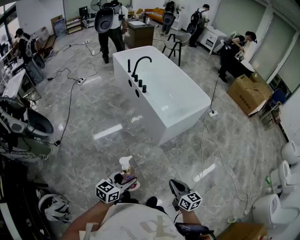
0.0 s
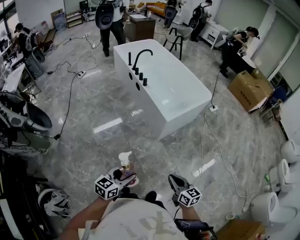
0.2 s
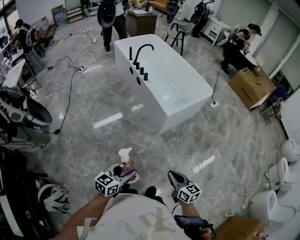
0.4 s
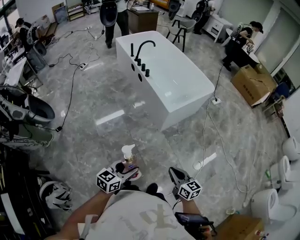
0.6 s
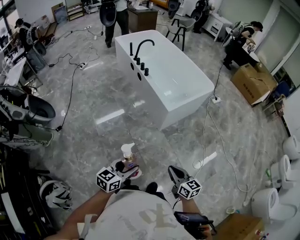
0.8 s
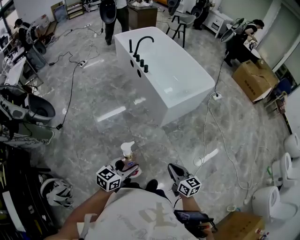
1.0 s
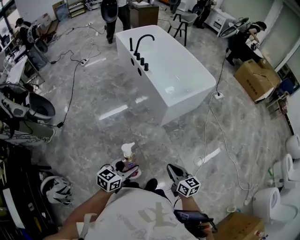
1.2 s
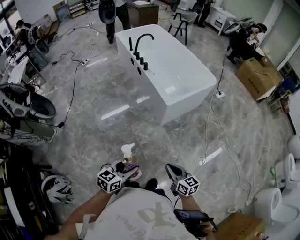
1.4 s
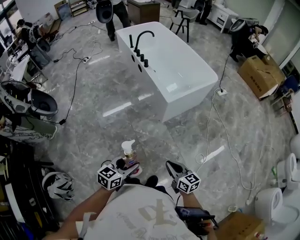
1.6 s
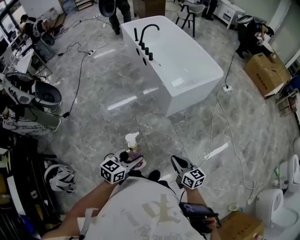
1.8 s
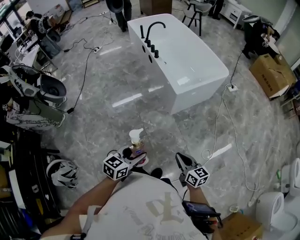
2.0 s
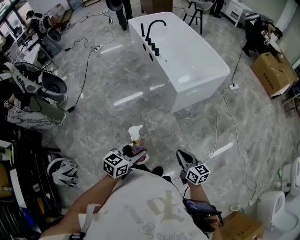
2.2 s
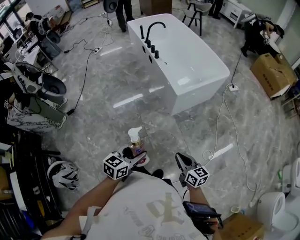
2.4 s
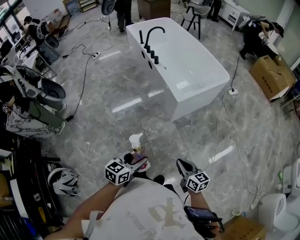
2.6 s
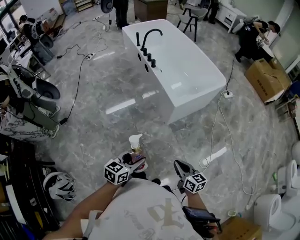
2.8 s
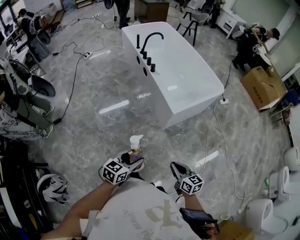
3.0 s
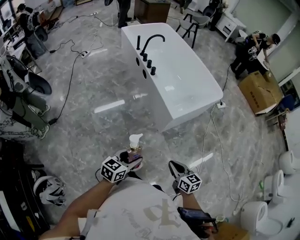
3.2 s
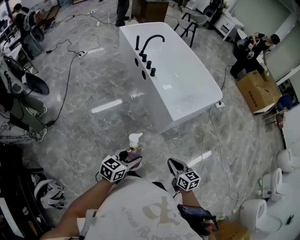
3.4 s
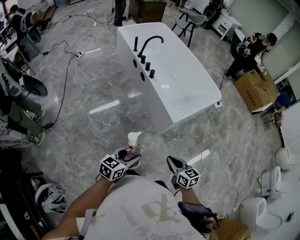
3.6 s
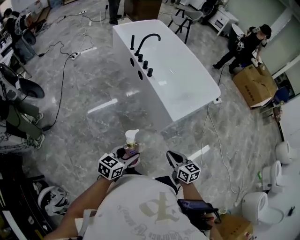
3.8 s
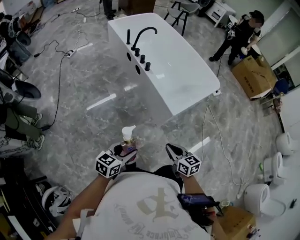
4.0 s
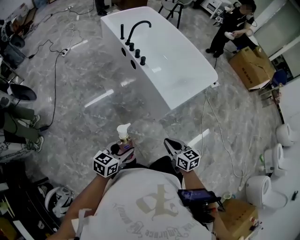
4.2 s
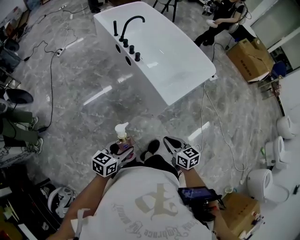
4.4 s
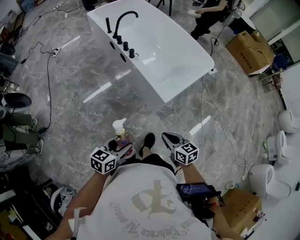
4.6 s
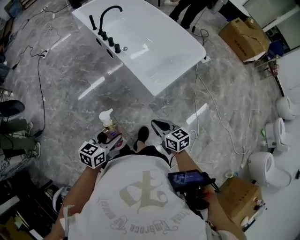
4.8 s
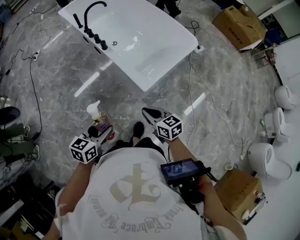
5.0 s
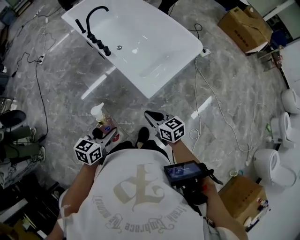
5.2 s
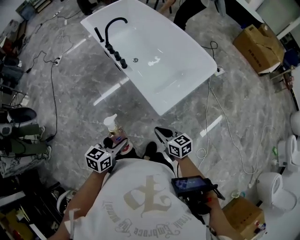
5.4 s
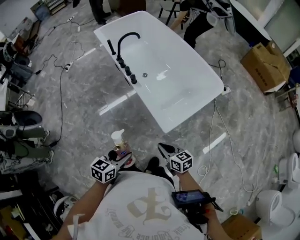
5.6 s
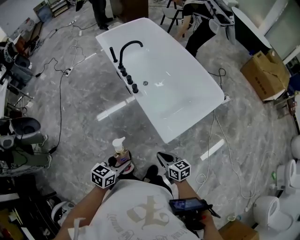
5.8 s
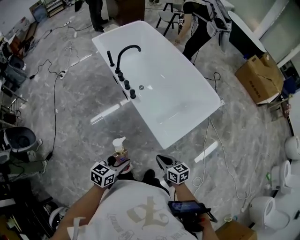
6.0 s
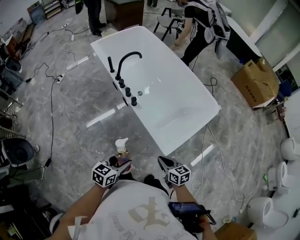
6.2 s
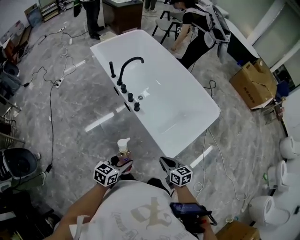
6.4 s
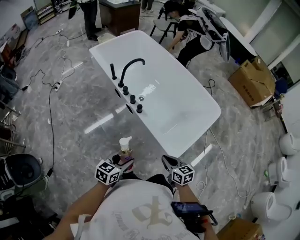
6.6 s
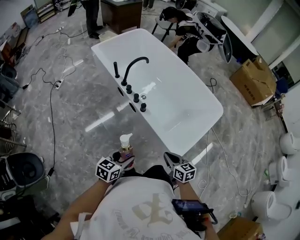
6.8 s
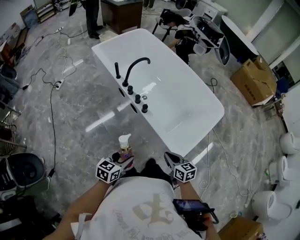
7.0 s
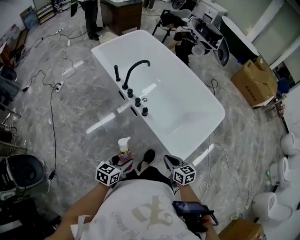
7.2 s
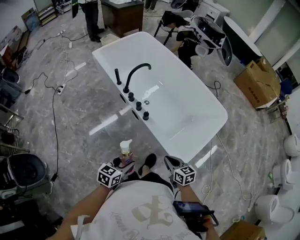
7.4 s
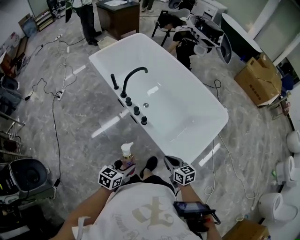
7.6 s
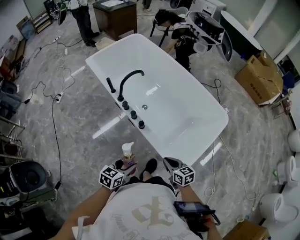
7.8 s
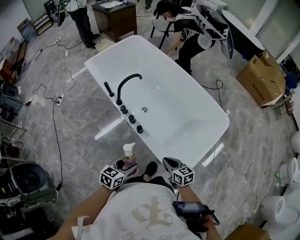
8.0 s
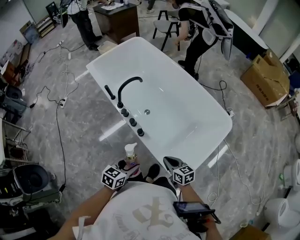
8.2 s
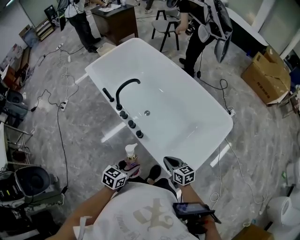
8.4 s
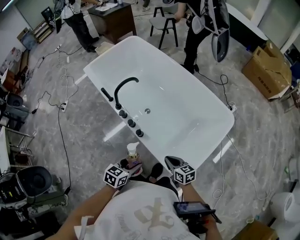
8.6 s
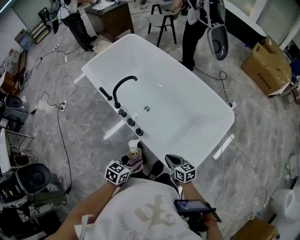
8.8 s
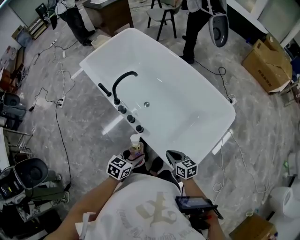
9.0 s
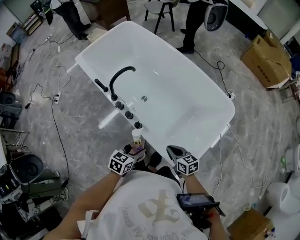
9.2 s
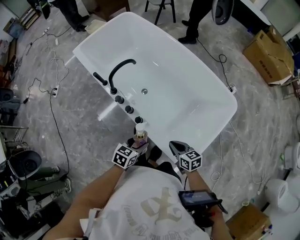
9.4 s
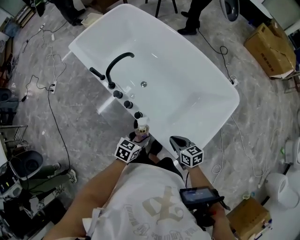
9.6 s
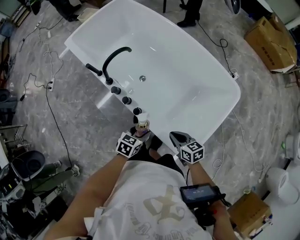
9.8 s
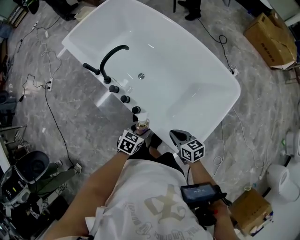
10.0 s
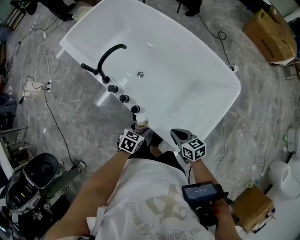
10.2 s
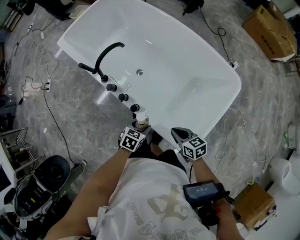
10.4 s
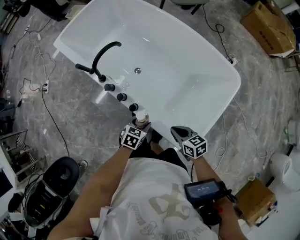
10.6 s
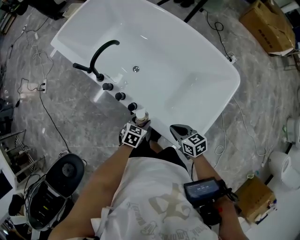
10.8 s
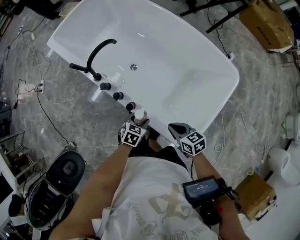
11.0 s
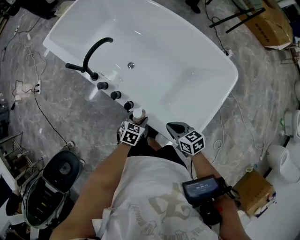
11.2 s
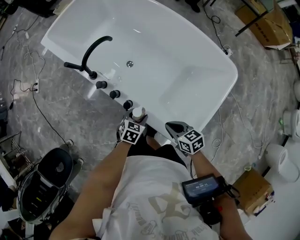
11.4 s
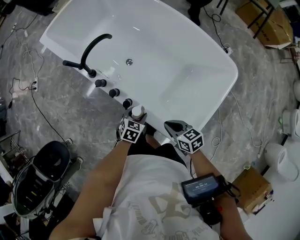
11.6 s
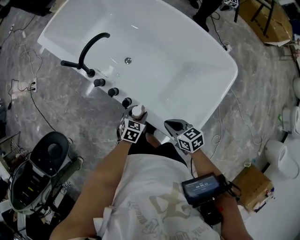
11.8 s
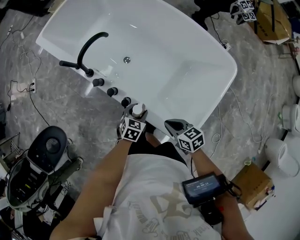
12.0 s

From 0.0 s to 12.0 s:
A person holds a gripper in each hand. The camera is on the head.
From 0.0 s to 1.6 s: The left gripper shifts some 10 cm to the right.
From 1.6 s to 3.0 s: Both grippers travel together forward, approximately 10 cm.
From 3.0 s to 4.4 s: The two grippers go about 15 cm forward and to the left.
From 4.4 s to 6.0 s: The grippers both shift forward by roughly 25 cm.
From 6.0 s to 7.6 s: The grippers both shift forward and to the left by about 20 cm.
From 7.6 s to 9.0 s: The right gripper shifts roughly 10 cm forward, while the left gripper shifts some 20 cm forward and to the right.
From 9.0 s to 10.4 s: The left gripper shifts roughly 15 cm downward and forward.
From 10.4 s to 12.0 s: The left gripper moves downward, roughly 5 cm.

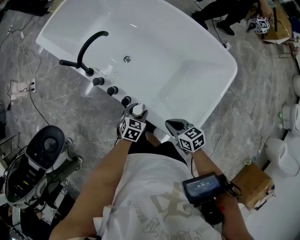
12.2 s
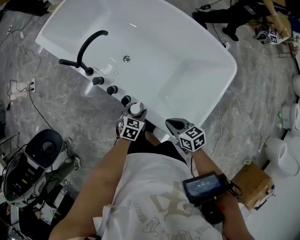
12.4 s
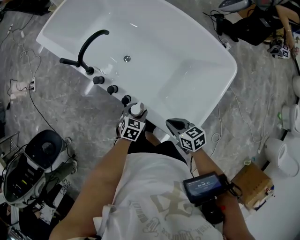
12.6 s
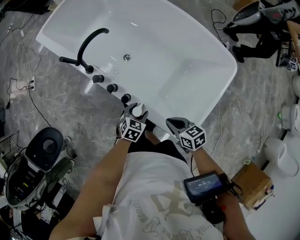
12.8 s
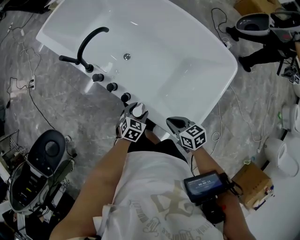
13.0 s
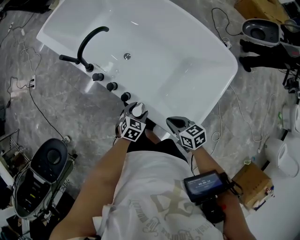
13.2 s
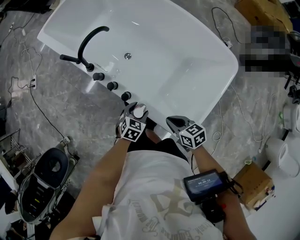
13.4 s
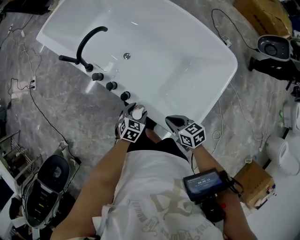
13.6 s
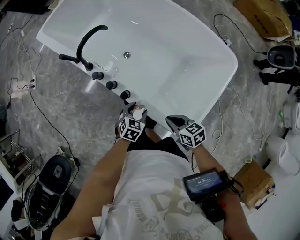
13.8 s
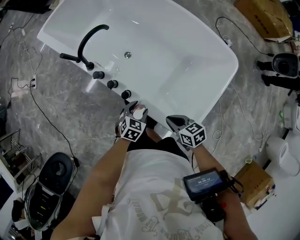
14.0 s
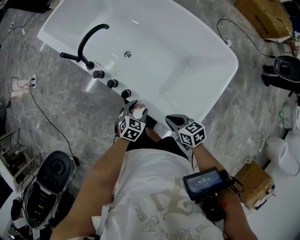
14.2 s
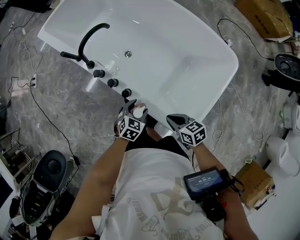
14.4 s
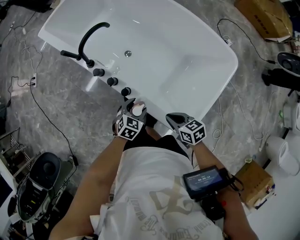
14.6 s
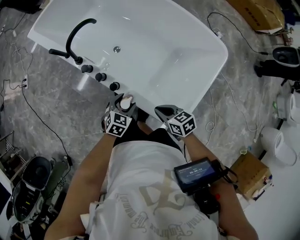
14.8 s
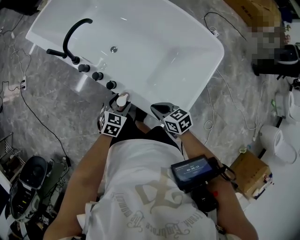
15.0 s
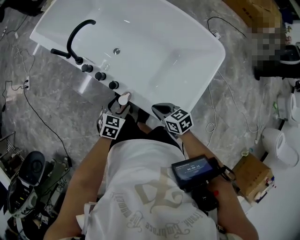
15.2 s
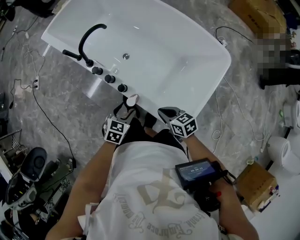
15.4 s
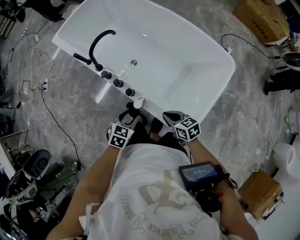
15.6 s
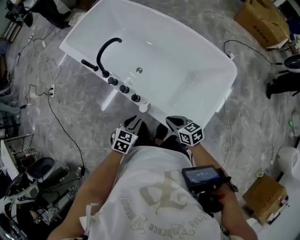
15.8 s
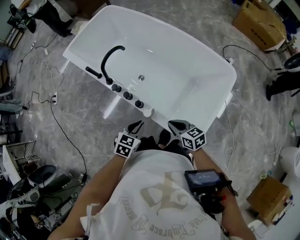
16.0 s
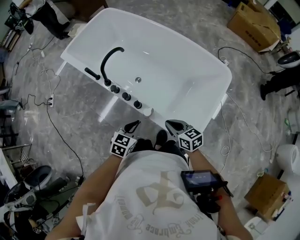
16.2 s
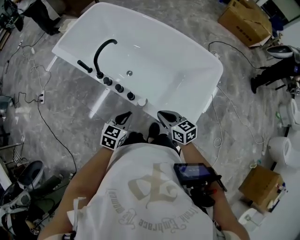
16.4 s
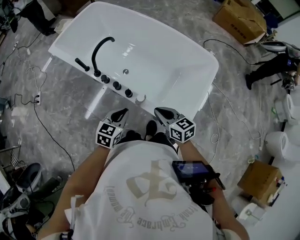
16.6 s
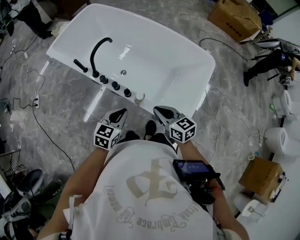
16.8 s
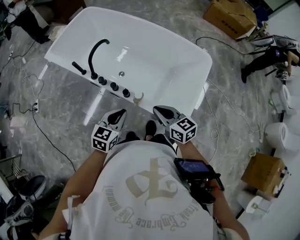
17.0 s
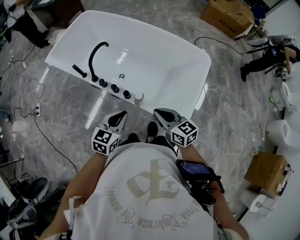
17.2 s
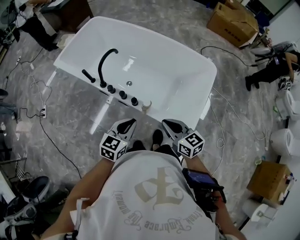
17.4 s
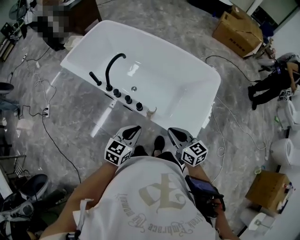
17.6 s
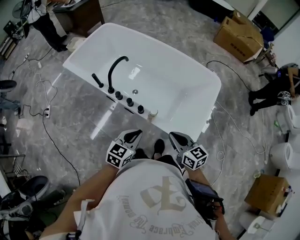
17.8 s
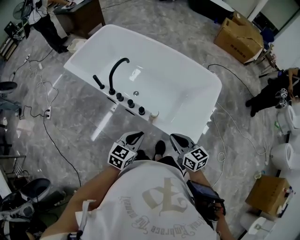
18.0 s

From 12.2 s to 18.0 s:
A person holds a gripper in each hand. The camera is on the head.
From 12.2 s to 15.0 s: The grippers move only a little.
From 15.0 s to 16.6 s: The two grippers go roughly 15 cm upward and to the left. The right gripper rotates about 20 degrees. Meanwhile the left gripper closes its fingers.
From 16.6 s to 18.0 s: The right gripper goes about 10 cm backward and upward; the left gripper heads backward, covering approximately 5 cm.

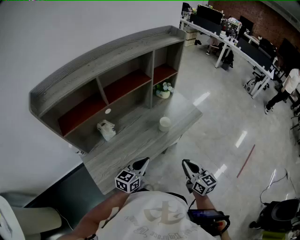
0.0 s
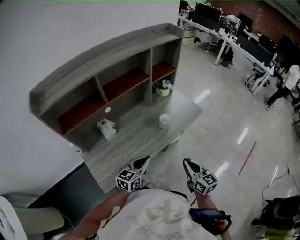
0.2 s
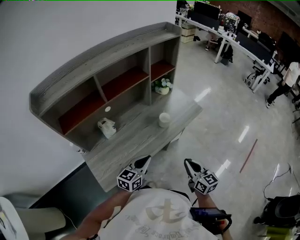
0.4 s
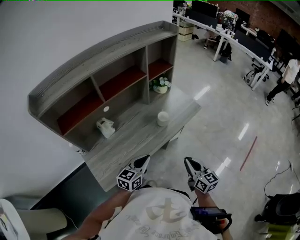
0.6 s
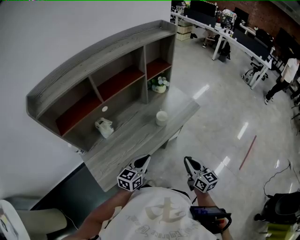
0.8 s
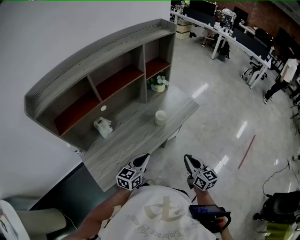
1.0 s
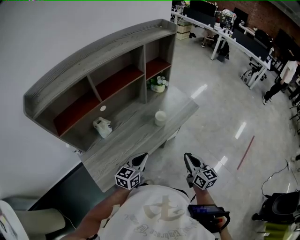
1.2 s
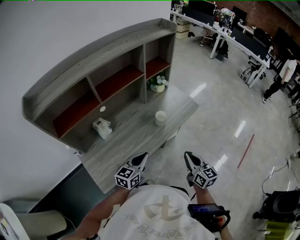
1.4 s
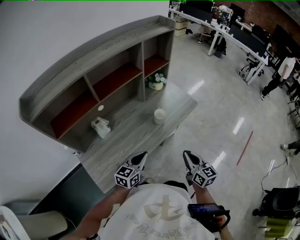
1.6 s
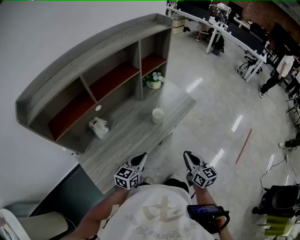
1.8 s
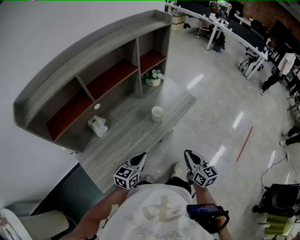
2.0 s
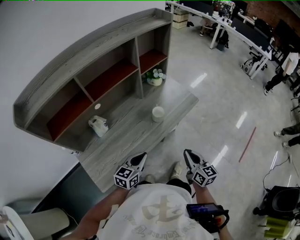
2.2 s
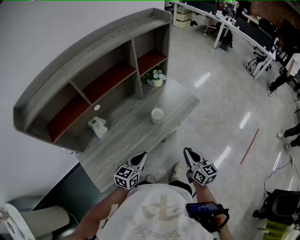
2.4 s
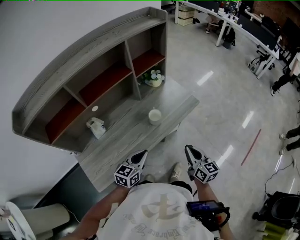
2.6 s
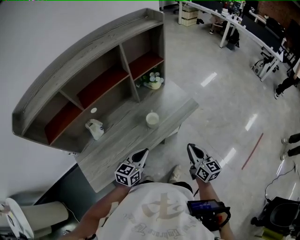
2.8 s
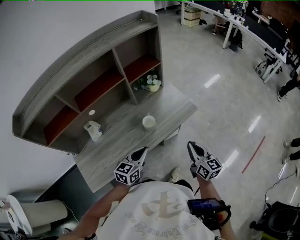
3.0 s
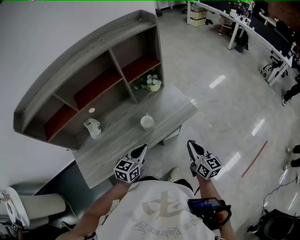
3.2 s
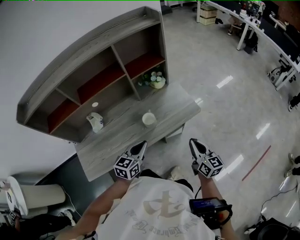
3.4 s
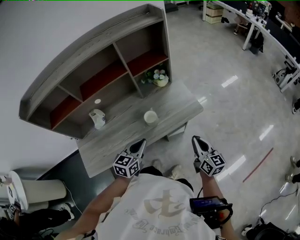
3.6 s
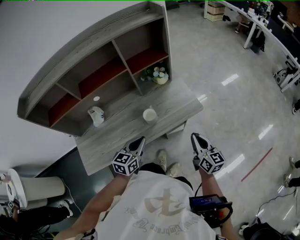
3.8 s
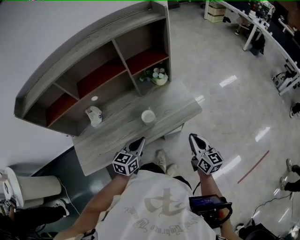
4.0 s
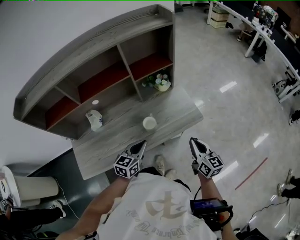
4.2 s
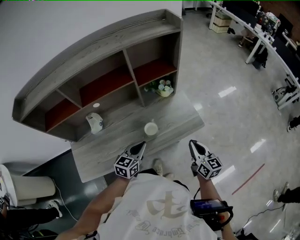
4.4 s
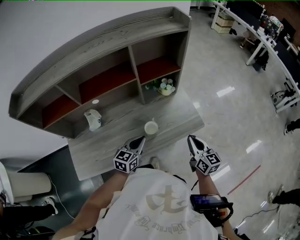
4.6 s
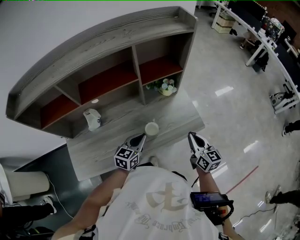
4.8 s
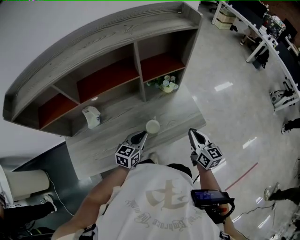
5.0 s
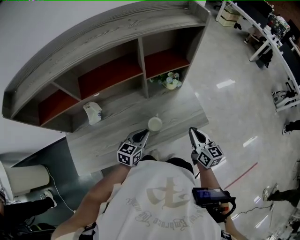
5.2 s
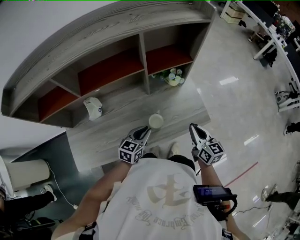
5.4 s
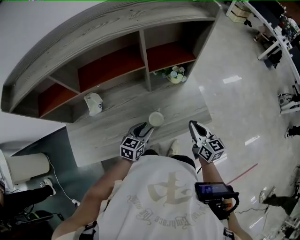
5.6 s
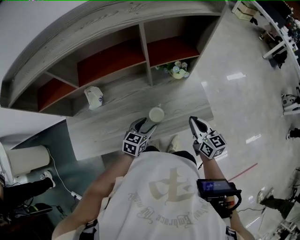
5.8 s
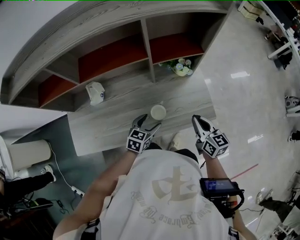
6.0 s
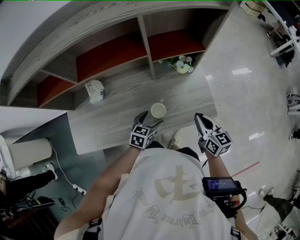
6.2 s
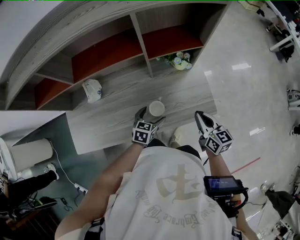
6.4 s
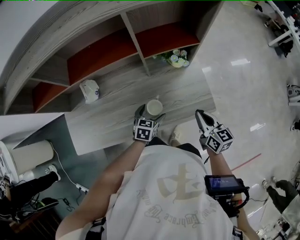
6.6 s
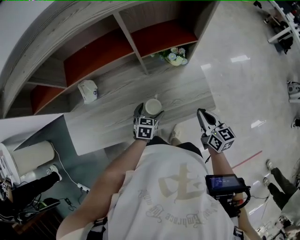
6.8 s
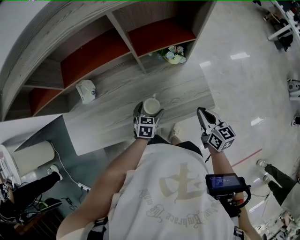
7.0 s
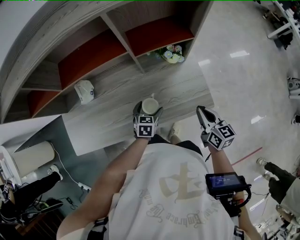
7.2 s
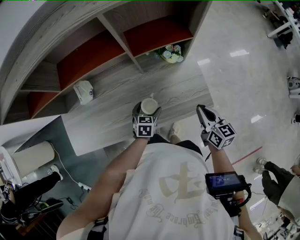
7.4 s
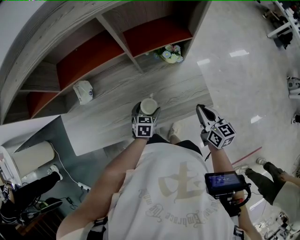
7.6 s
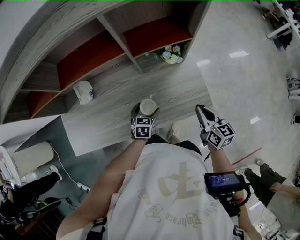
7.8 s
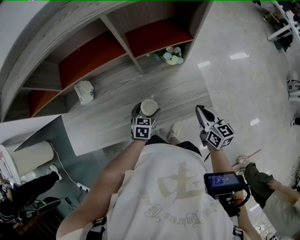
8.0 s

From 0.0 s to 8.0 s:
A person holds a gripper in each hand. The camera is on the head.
From 0.0 s to 1.6 s: The grippers move only a little.
From 1.6 s to 3.2 s: The right gripper travels forward and to the right by about 25 cm, while the left gripper heads to the right and forward, covering roughly 20 cm.
From 3.2 s to 4.8 s: Both grippers travel together forward, some 15 cm.
From 4.8 s to 6.4 s: The right gripper shifts about 10 cm forward and downward, while the left gripper moves downward, some 15 cm, changes its angle by some 20 degrees, and opens.
From 6.4 s to 8.0 s: The right gripper changes place by some 5 cm.
